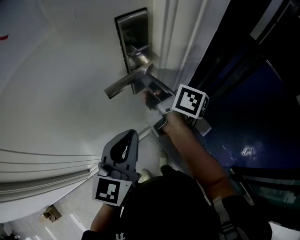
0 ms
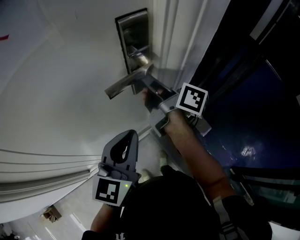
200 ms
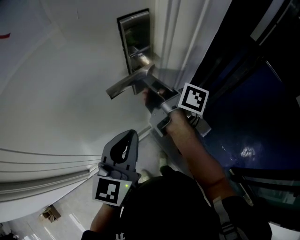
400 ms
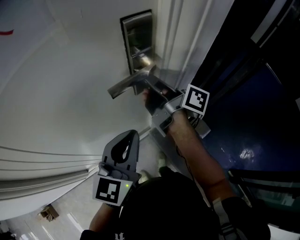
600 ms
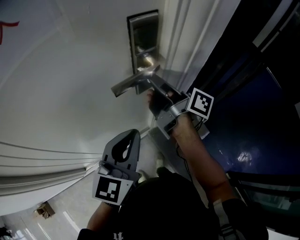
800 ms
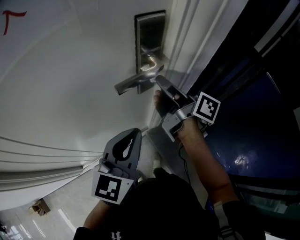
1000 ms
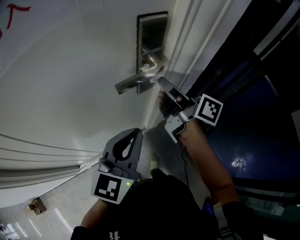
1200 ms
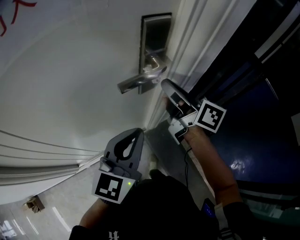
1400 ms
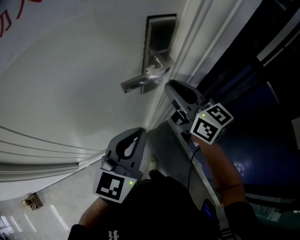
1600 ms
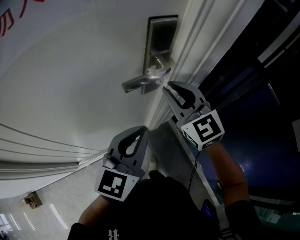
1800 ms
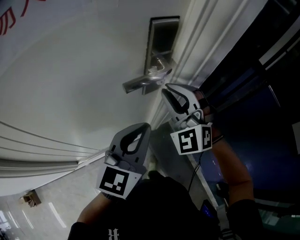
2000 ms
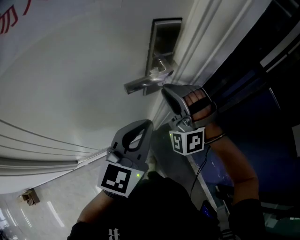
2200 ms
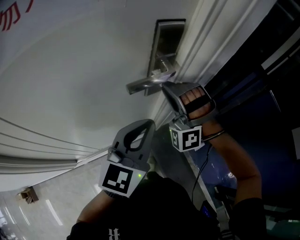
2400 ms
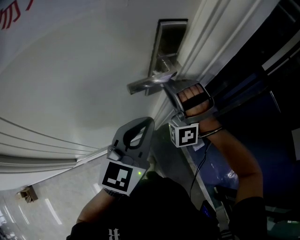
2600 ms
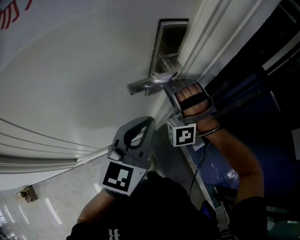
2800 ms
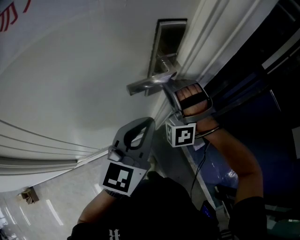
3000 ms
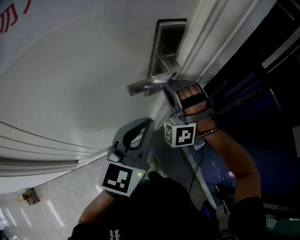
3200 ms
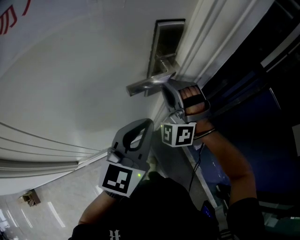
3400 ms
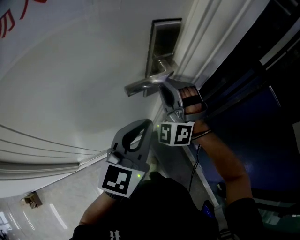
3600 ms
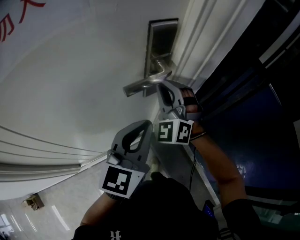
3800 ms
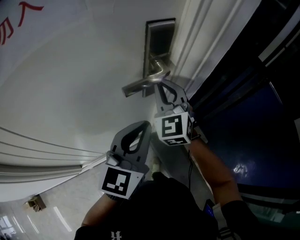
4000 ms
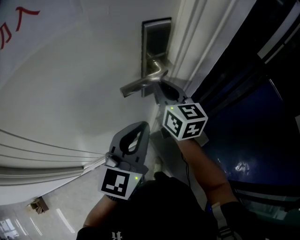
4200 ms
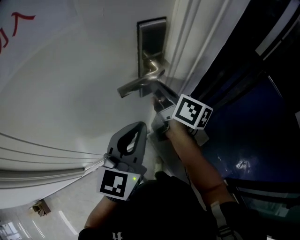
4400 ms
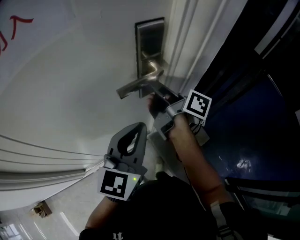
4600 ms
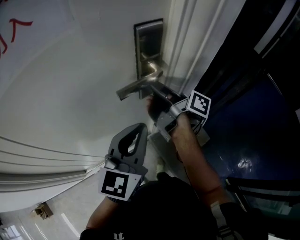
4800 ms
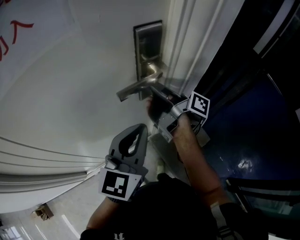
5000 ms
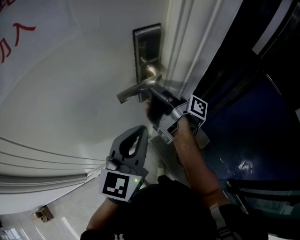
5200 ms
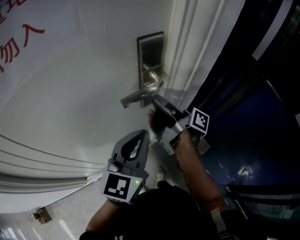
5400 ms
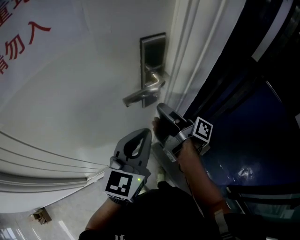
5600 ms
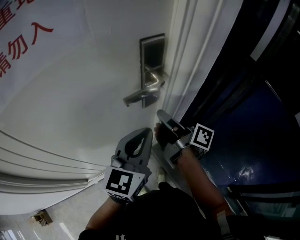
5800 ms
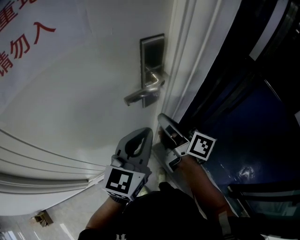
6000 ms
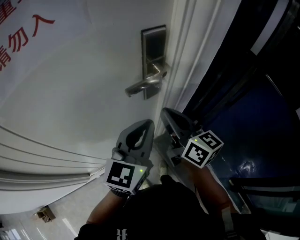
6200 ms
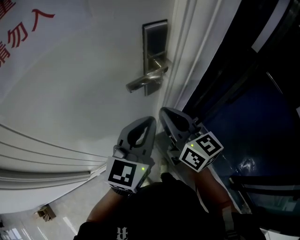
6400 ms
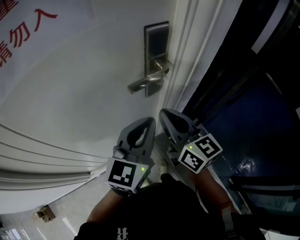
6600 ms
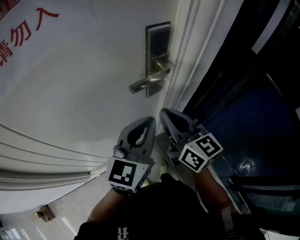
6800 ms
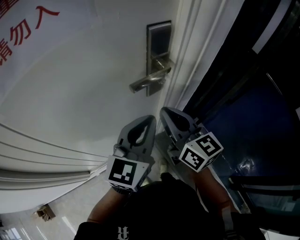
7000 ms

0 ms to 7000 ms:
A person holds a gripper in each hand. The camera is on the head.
0 ms to 1400 ms: There are only small adjustments of the grippers.
1400 ms to 2800 ms: The right gripper ends up roughly 5 cm from where it was, and rolls counterclockwise, seen from behind, by roughly 150 degrees.
2800 ms to 4200 ms: The right gripper twists about 120 degrees clockwise, seen from behind.
4200 ms to 5600 ms: The right gripper ends up about 5 cm from where it was, and twists approximately 80 degrees clockwise, seen from behind.
5600 ms to 7000 ms: The right gripper goes about 10 cm backward, and rotates around the line of its fingers by about 70 degrees, counterclockwise from behind.

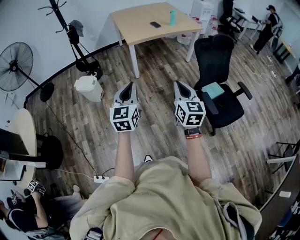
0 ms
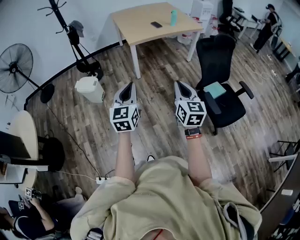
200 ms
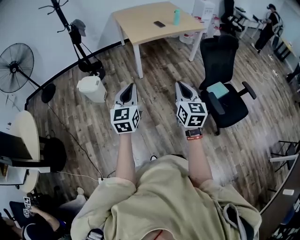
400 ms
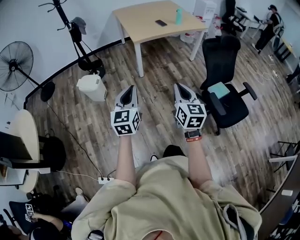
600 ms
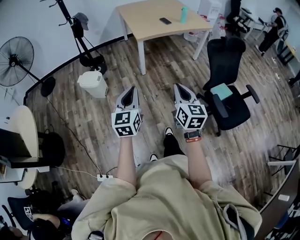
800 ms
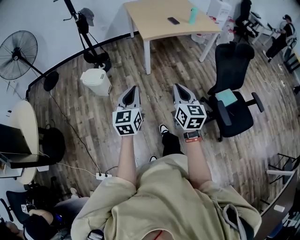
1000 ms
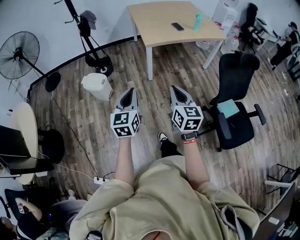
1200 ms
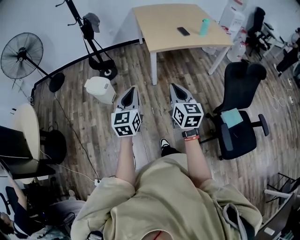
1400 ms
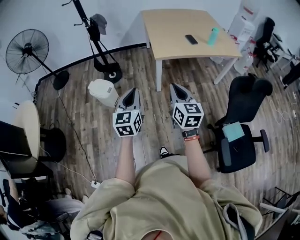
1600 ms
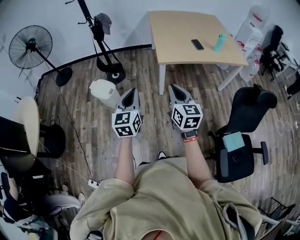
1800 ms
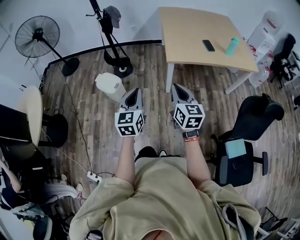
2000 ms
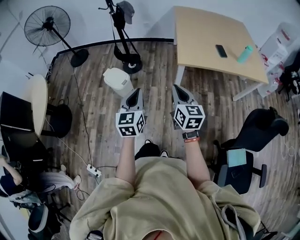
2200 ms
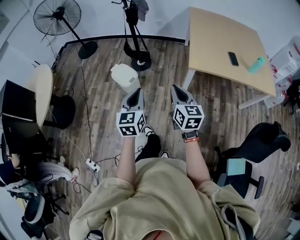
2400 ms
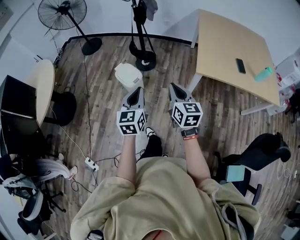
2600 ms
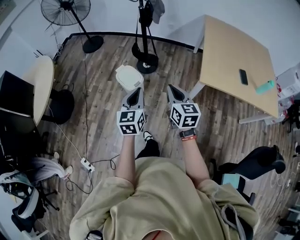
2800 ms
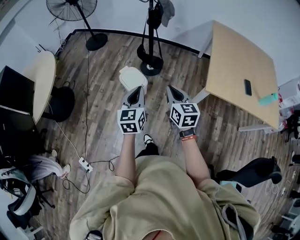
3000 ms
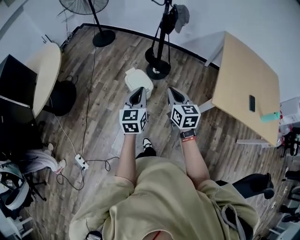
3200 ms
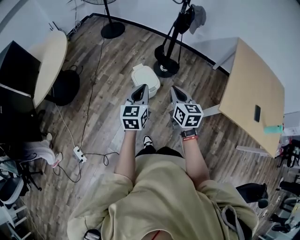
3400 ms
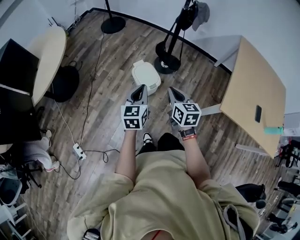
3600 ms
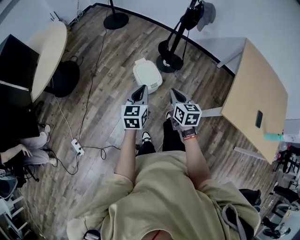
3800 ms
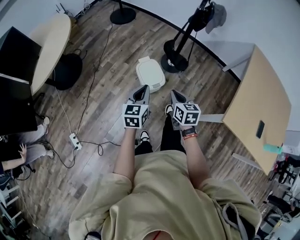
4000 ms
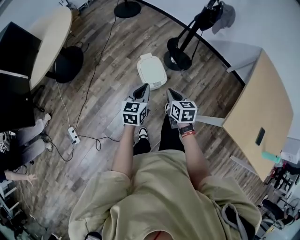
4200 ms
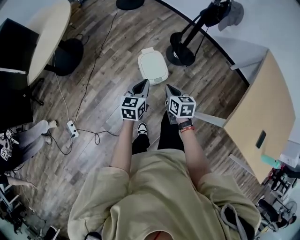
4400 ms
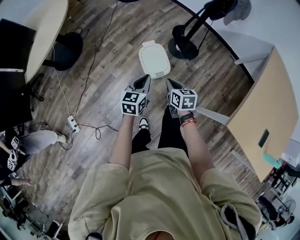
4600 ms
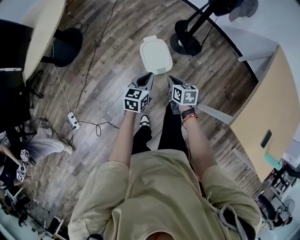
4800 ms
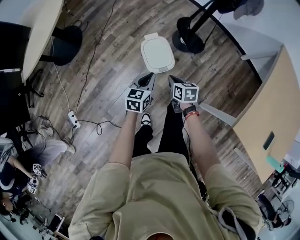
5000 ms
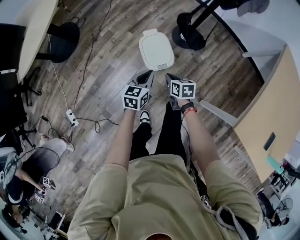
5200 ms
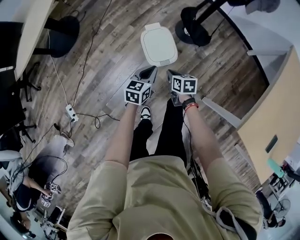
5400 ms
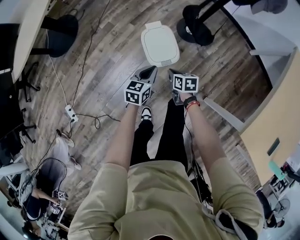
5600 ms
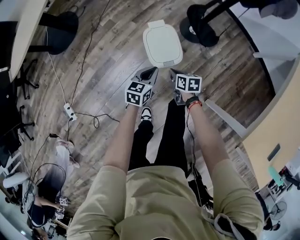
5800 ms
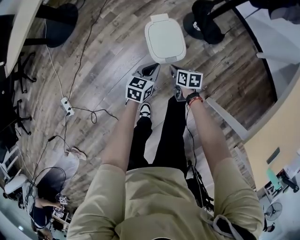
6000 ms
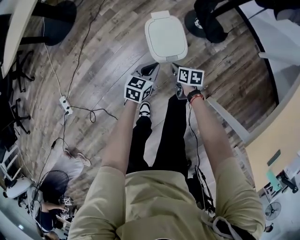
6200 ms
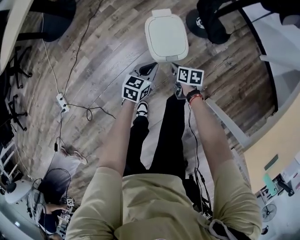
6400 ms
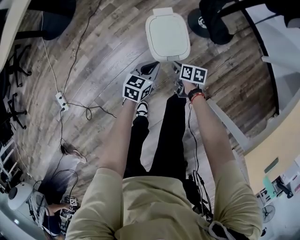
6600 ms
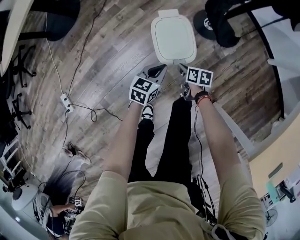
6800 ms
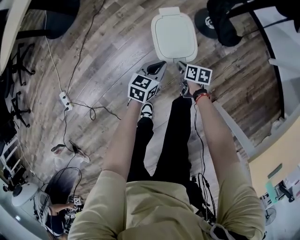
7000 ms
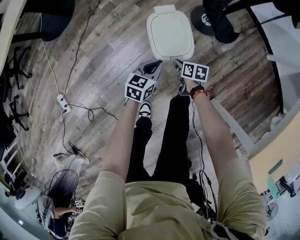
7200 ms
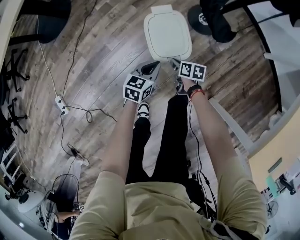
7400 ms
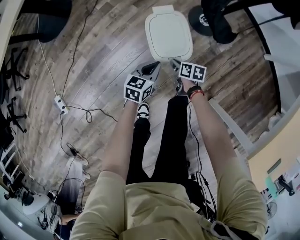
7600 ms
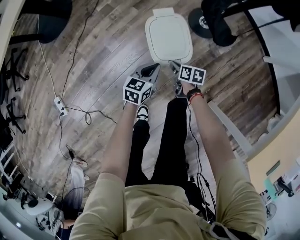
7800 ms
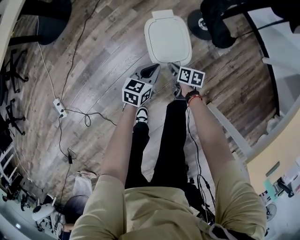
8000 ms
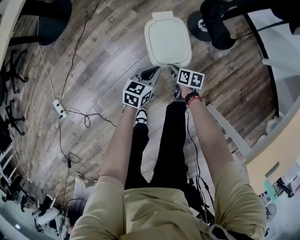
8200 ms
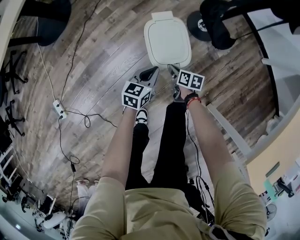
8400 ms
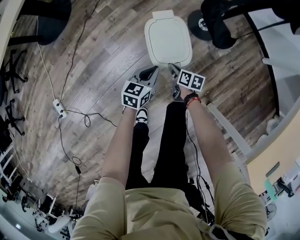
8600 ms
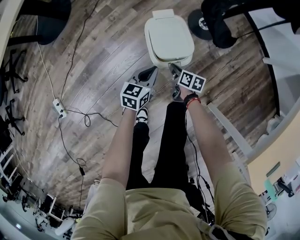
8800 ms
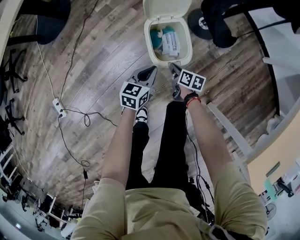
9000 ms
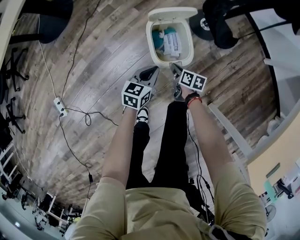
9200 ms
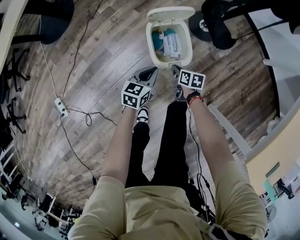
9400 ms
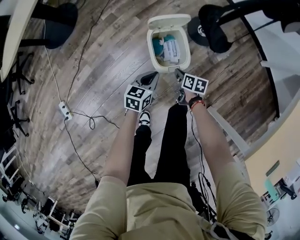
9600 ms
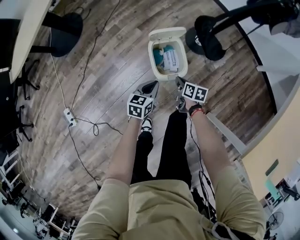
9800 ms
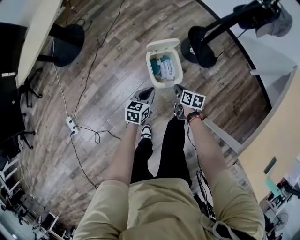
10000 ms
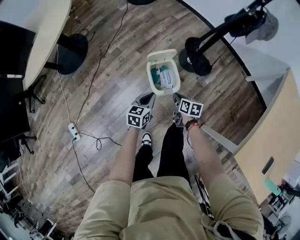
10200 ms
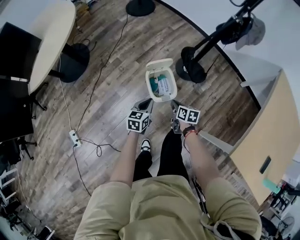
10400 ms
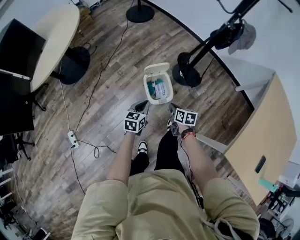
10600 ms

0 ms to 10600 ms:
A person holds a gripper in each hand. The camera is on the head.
0 ms to 1600 ms: The grippers both shift forward by approximately 35 cm.
1600 ms to 3000 ms: The right gripper moves approximately 40 cm, and swivels roughly 30 degrees. Meanwhile the left gripper moves approximately 35 cm, and changes its angle by about 30 degrees.
3000 ms to 4600 ms: Both grippers travel together forward and downward, some 40 cm. The right gripper changes its angle by roughly 40 degrees.
4600 ms to 6000 ms: Both grippers travel together downward, some 30 cm. The right gripper swivels some 20 degrees.
6000 ms to 7600 ms: The grippers both shift downward by about 10 cm.
7600 ms to 9000 ms: The grippers stay close to where they were, moving slightly.
9000 ms to 10600 ms: The two grippers go about 35 cm upward.

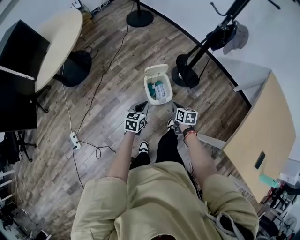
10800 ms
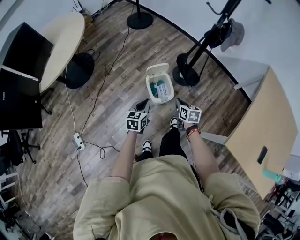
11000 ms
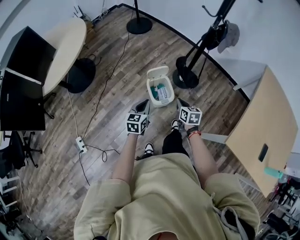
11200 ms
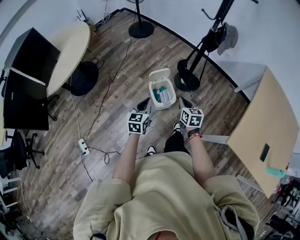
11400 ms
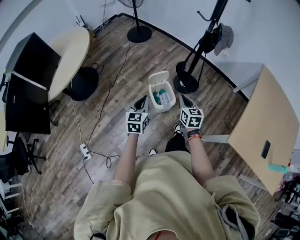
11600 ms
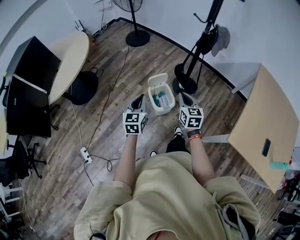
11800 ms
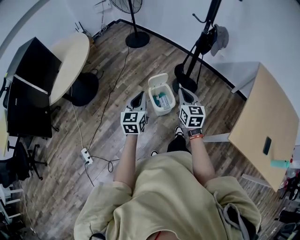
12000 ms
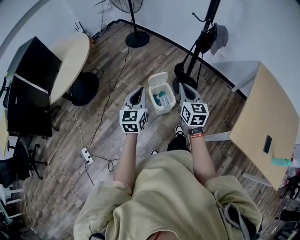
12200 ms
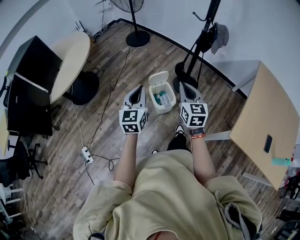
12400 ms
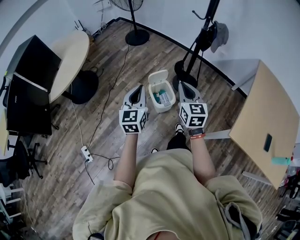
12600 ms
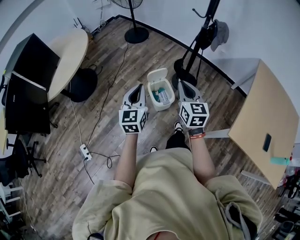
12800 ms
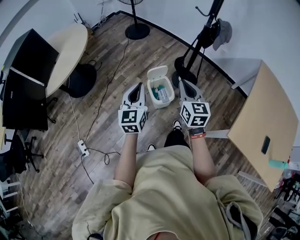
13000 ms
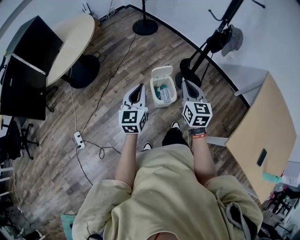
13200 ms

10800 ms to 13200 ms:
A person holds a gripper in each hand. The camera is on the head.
10800 ms to 12000 ms: The grippers both shift upward by approximately 25 cm. The left gripper turns by roughly 20 degrees. The right gripper turns by roughly 40 degrees.
12000 ms to 13200 ms: The grippers stay close to where they were, moving slightly.

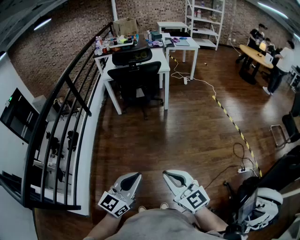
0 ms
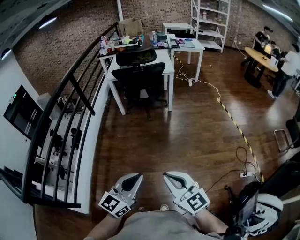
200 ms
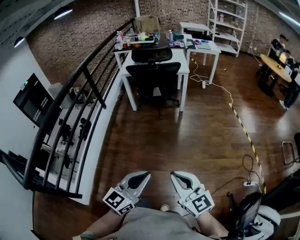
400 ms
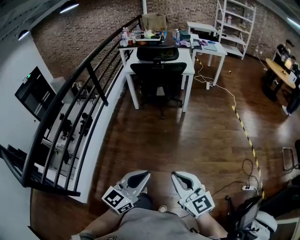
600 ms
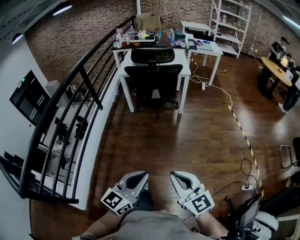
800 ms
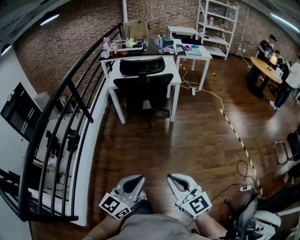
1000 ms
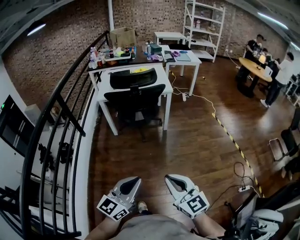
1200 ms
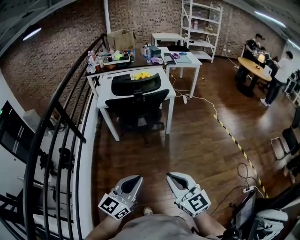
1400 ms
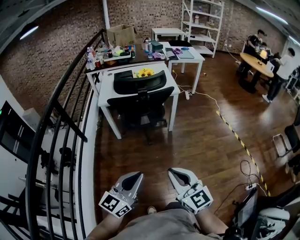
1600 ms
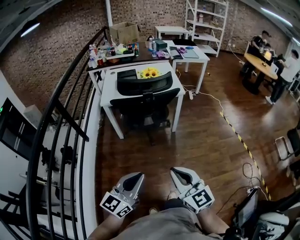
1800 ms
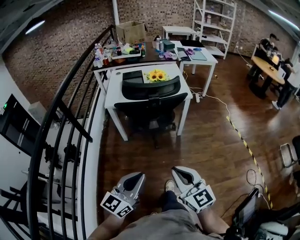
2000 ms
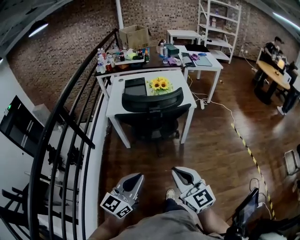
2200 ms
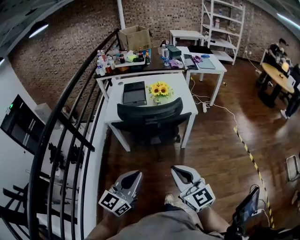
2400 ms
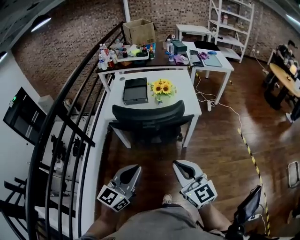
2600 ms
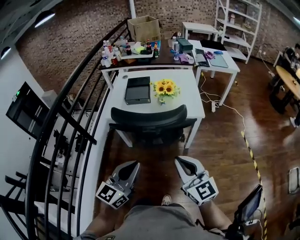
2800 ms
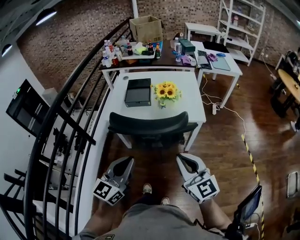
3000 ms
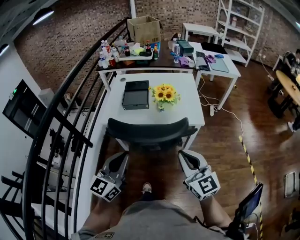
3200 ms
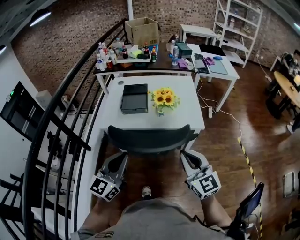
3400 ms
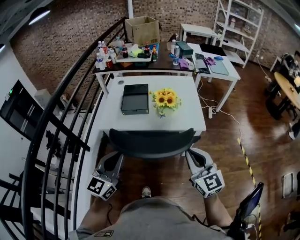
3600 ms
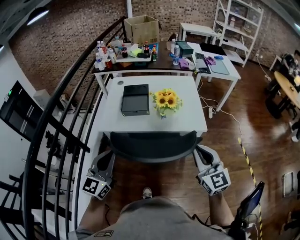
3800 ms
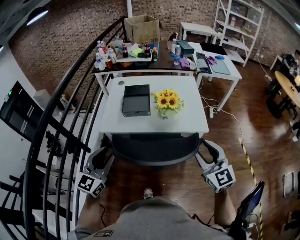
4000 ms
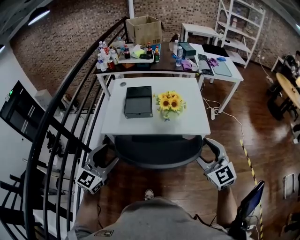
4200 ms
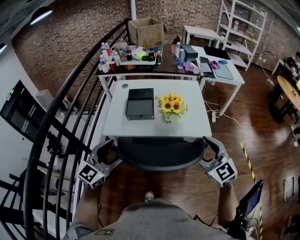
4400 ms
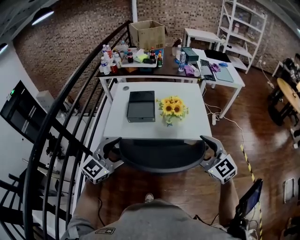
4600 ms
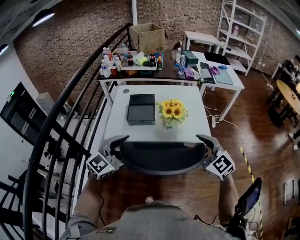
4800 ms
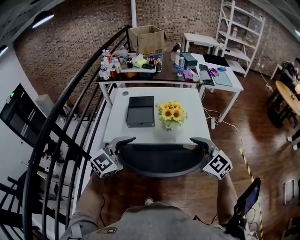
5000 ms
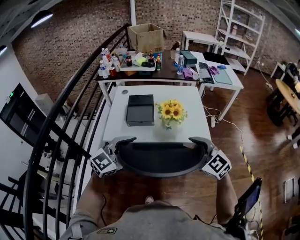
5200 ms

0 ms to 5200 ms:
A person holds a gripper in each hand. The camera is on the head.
0 ms to 1800 ms: Both grippers travel together forward, approximately 35 cm.
1800 ms to 3400 ms: The two grippers go approximately 40 cm forward.
3400 ms to 5200 ms: The grippers both shift forward by roughly 10 cm. The right gripper changes its angle by roughly 30 degrees, and opens; the left gripper changes its angle by roughly 30 degrees, and opens its fingers.
